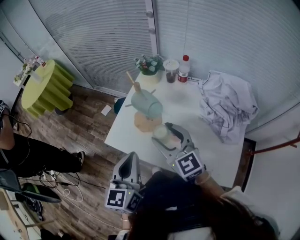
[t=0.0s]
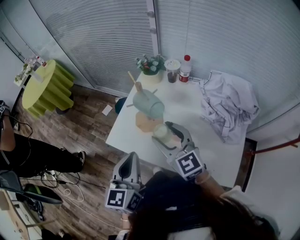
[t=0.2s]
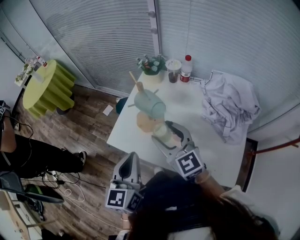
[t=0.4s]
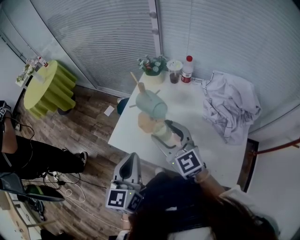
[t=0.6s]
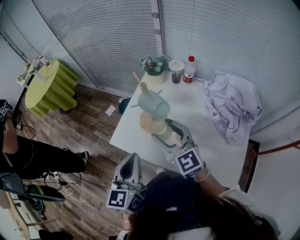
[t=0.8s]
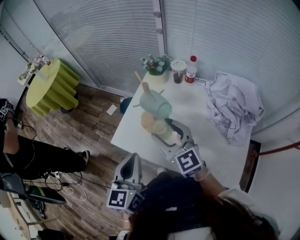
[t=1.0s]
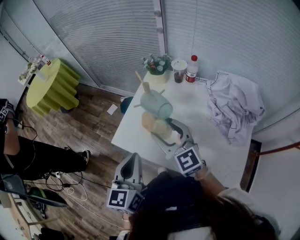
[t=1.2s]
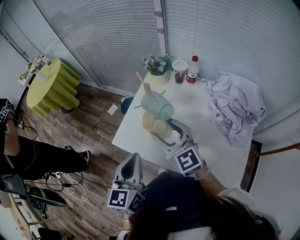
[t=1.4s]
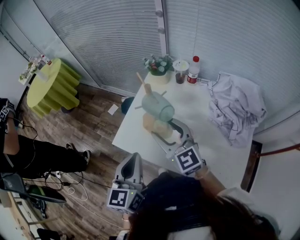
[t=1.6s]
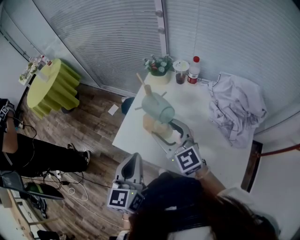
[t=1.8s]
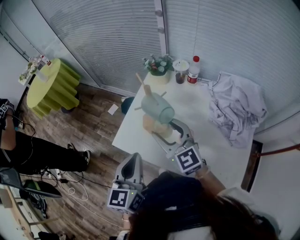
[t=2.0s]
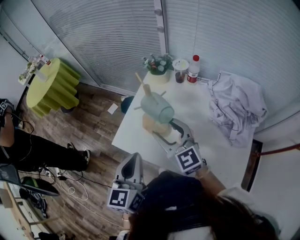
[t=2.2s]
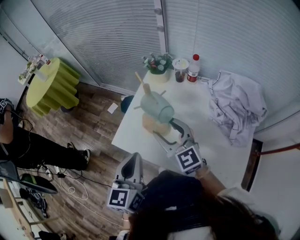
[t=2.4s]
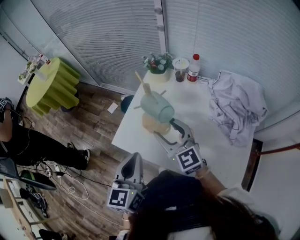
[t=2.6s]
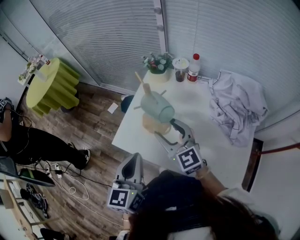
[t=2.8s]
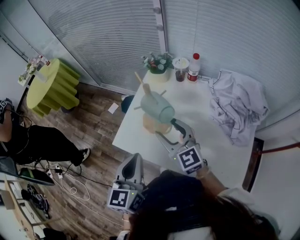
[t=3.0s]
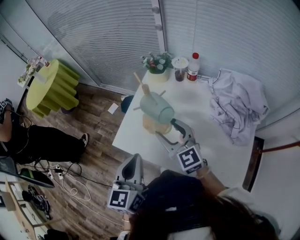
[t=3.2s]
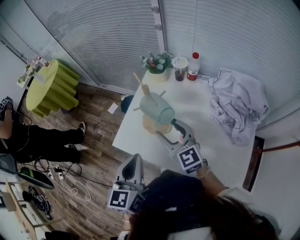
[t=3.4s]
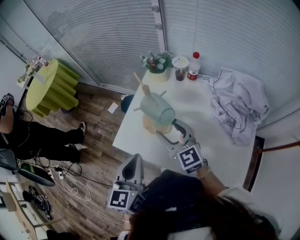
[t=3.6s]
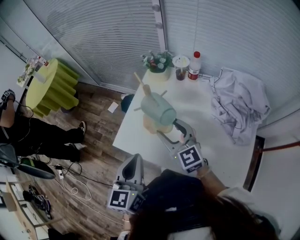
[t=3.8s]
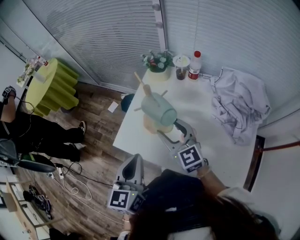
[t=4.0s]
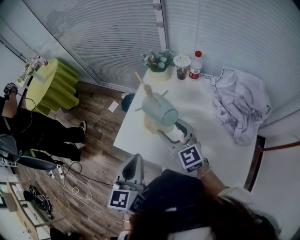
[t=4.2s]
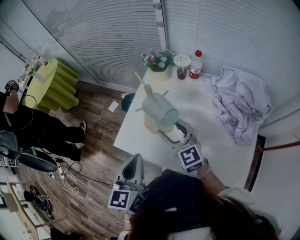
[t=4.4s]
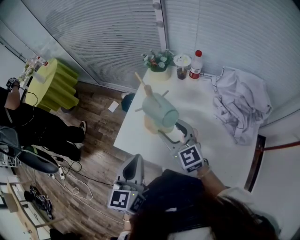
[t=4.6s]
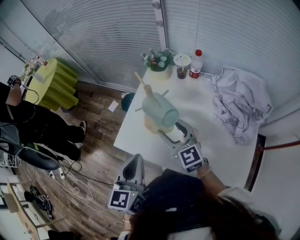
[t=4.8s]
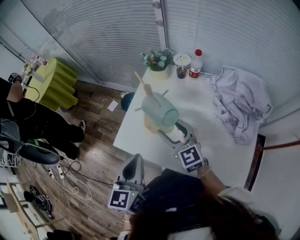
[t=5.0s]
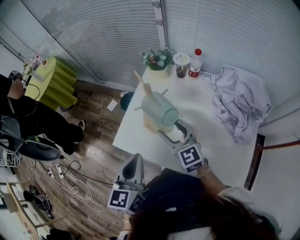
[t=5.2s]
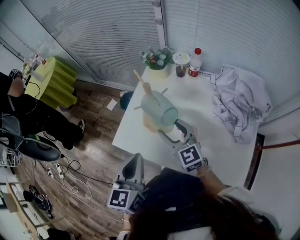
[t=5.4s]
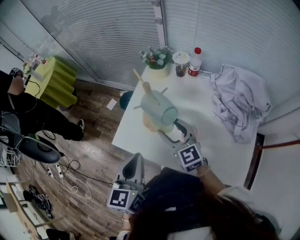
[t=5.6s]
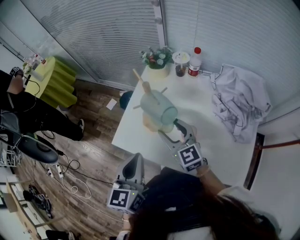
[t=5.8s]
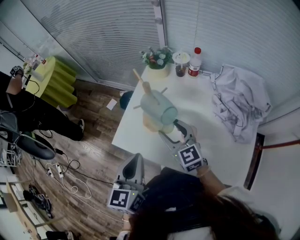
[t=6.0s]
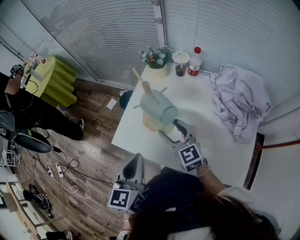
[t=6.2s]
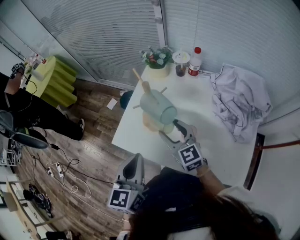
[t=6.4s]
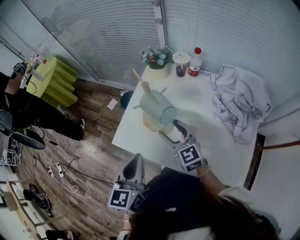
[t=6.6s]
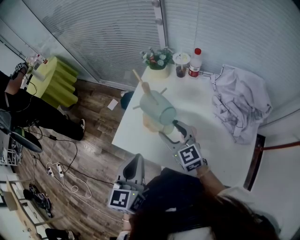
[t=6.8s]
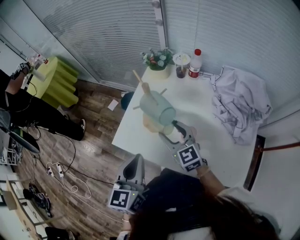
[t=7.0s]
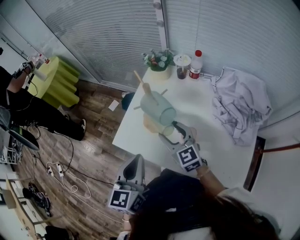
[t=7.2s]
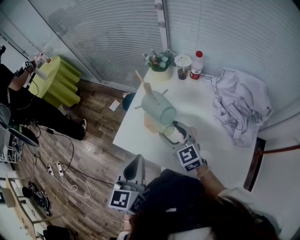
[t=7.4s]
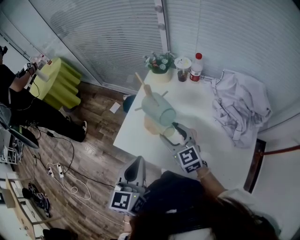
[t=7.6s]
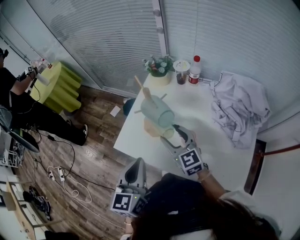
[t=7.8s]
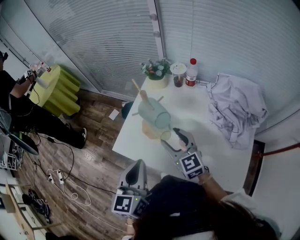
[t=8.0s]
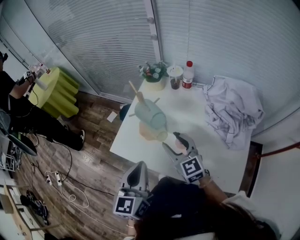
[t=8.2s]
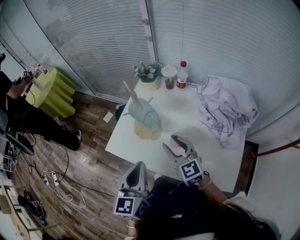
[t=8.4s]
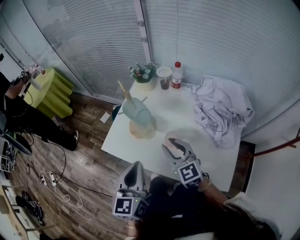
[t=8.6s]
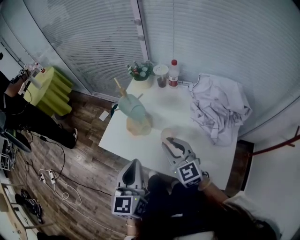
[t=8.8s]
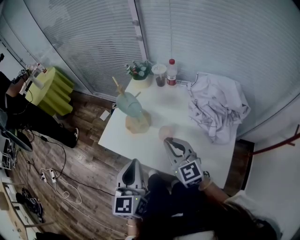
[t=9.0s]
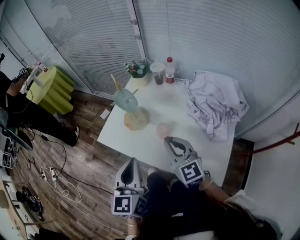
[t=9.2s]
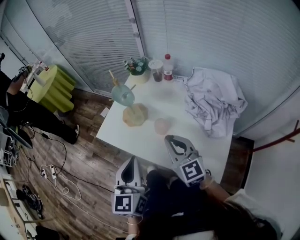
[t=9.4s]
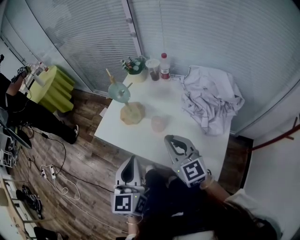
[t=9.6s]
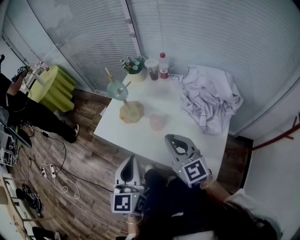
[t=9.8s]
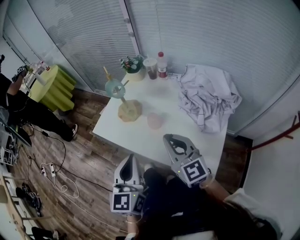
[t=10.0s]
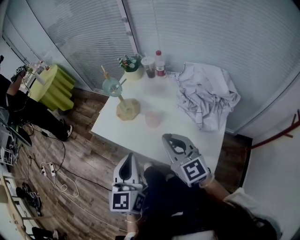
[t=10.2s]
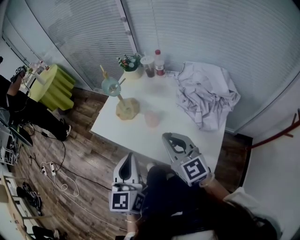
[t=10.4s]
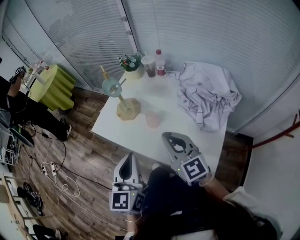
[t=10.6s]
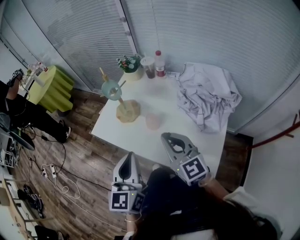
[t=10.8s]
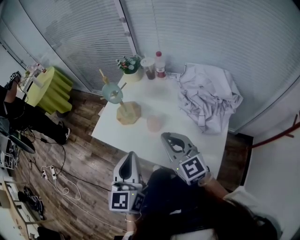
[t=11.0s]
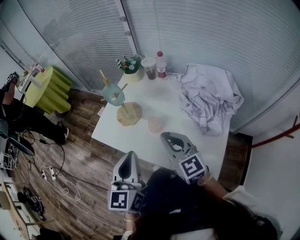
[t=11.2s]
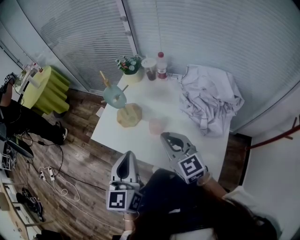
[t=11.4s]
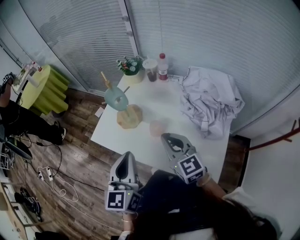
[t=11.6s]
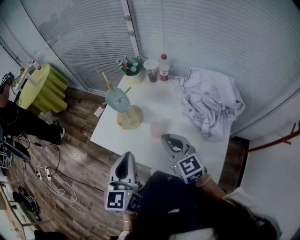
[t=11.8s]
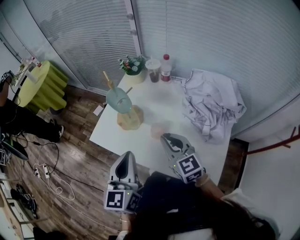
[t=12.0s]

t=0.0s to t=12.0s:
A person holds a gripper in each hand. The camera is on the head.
t=0.0s to t=1.6s: The right gripper changes place by about 5 cm.
t=1.6s to t=3.0s: There are only small adjustments of the grippers.
t=3.0s to t=6.0s: The grippers make only small movements.
t=6.0s to t=7.6s: The two grippers keep their place.
t=7.6s to t=9.0s: The right gripper goes some 15 cm backward, to the right and upward, and closes up; the left gripper is displaced to the right and backward by approximately 10 cm.
t=9.0s to t=10.4s: Both grippers move backward and to the right, about 10 cm.
t=10.4s to t=12.0s: Both grippers move forward, roughly 10 cm.

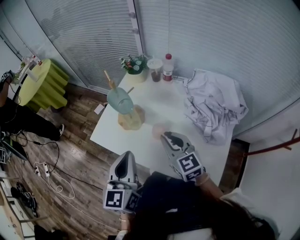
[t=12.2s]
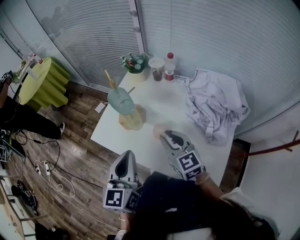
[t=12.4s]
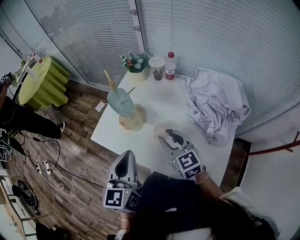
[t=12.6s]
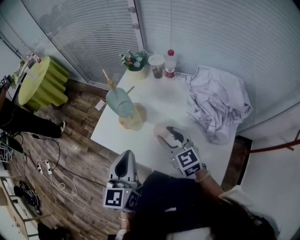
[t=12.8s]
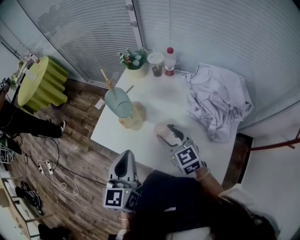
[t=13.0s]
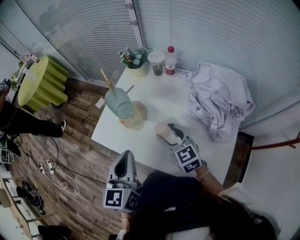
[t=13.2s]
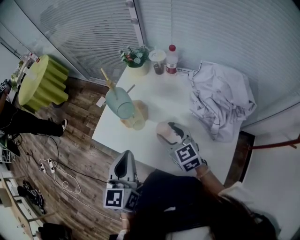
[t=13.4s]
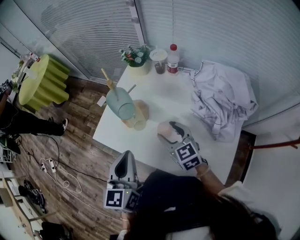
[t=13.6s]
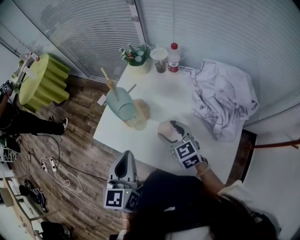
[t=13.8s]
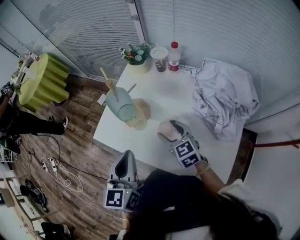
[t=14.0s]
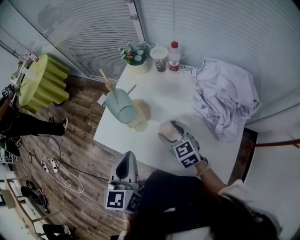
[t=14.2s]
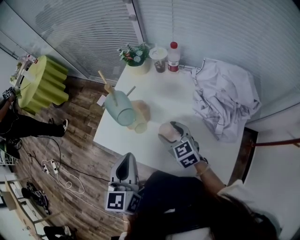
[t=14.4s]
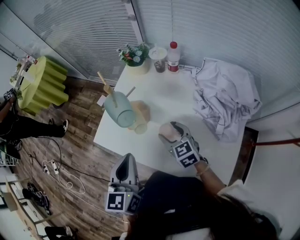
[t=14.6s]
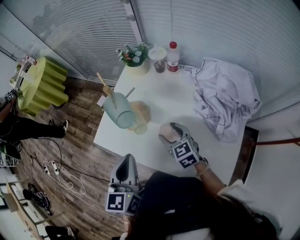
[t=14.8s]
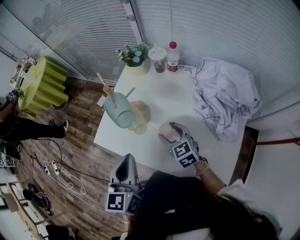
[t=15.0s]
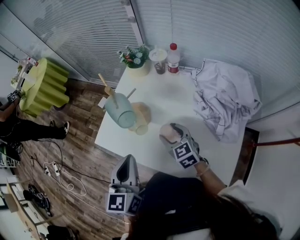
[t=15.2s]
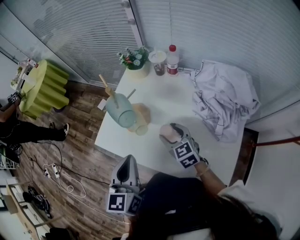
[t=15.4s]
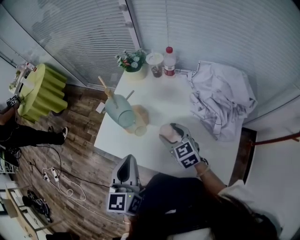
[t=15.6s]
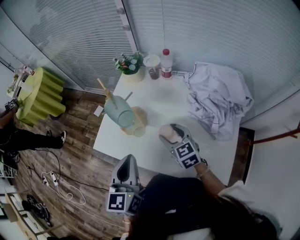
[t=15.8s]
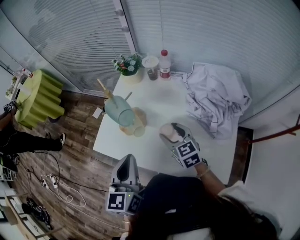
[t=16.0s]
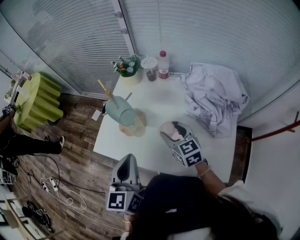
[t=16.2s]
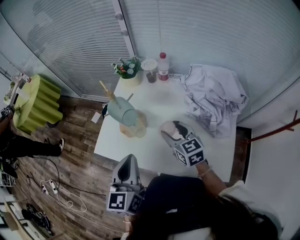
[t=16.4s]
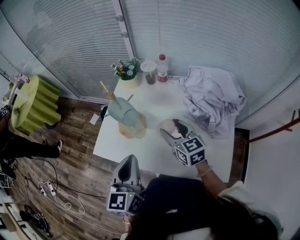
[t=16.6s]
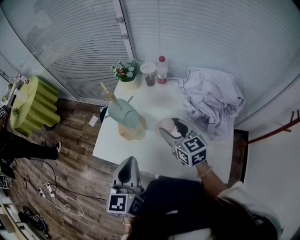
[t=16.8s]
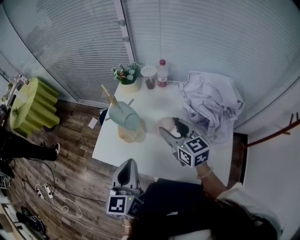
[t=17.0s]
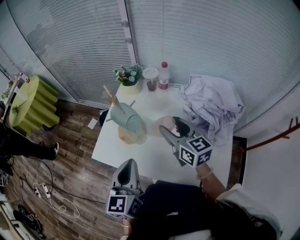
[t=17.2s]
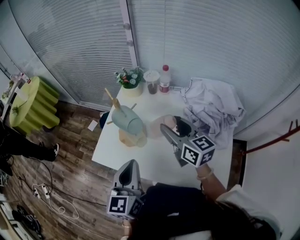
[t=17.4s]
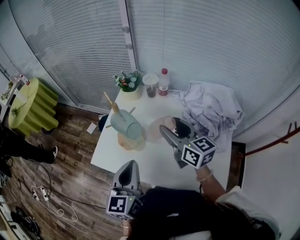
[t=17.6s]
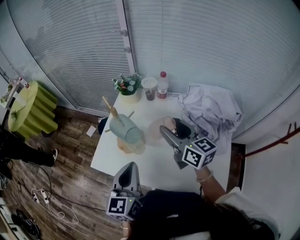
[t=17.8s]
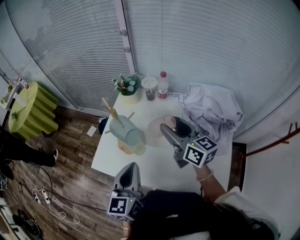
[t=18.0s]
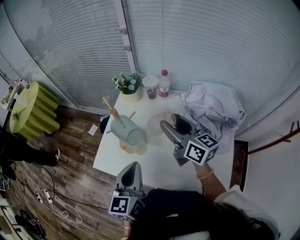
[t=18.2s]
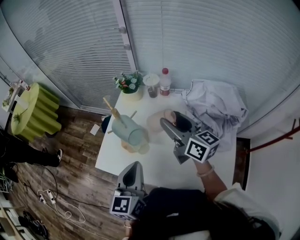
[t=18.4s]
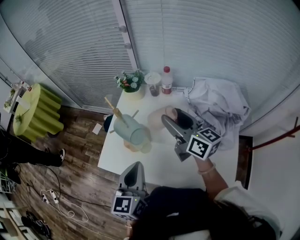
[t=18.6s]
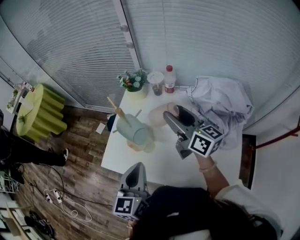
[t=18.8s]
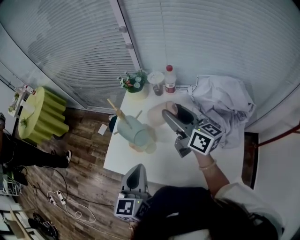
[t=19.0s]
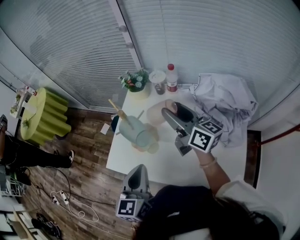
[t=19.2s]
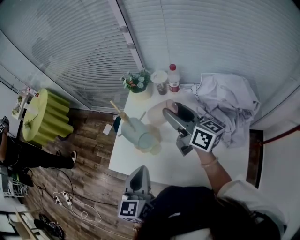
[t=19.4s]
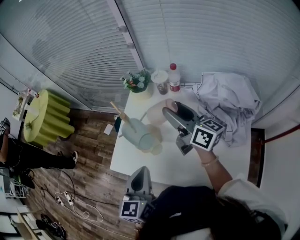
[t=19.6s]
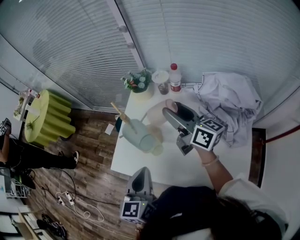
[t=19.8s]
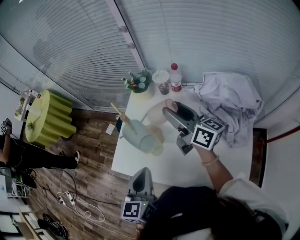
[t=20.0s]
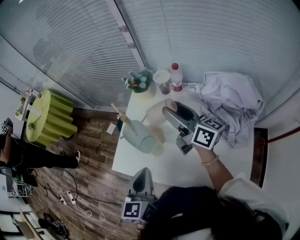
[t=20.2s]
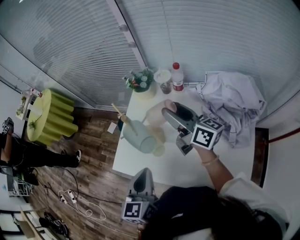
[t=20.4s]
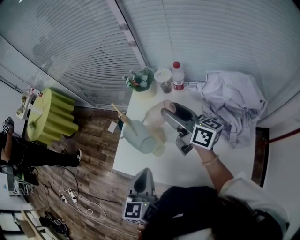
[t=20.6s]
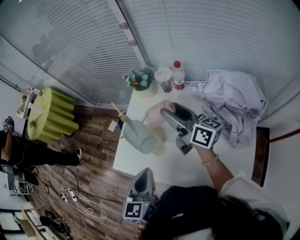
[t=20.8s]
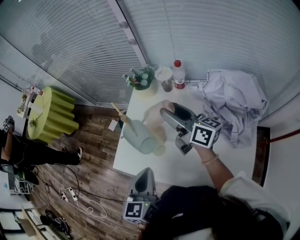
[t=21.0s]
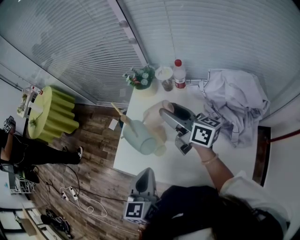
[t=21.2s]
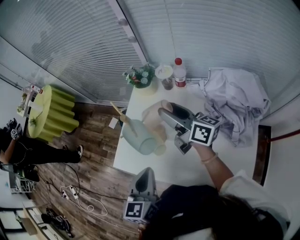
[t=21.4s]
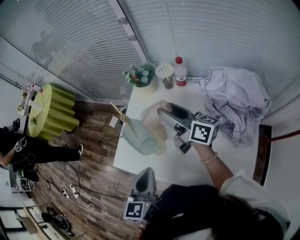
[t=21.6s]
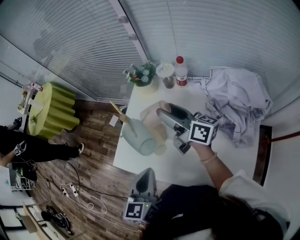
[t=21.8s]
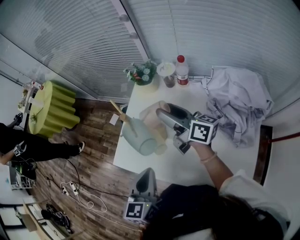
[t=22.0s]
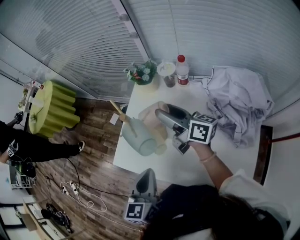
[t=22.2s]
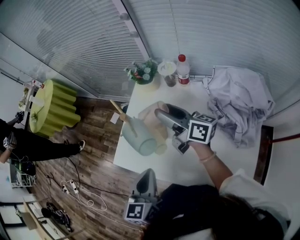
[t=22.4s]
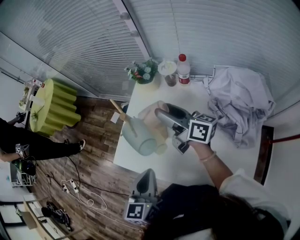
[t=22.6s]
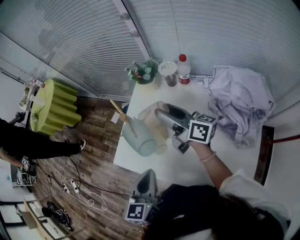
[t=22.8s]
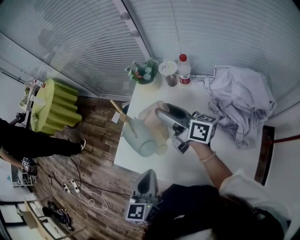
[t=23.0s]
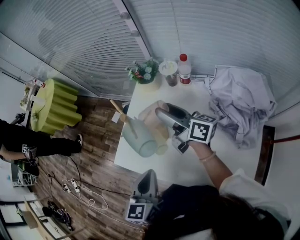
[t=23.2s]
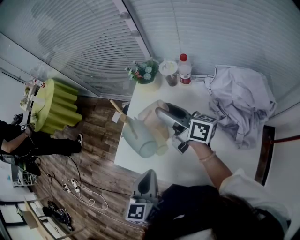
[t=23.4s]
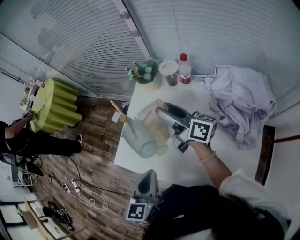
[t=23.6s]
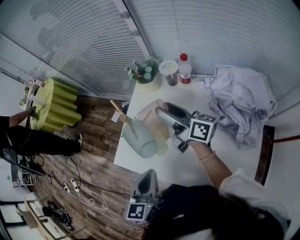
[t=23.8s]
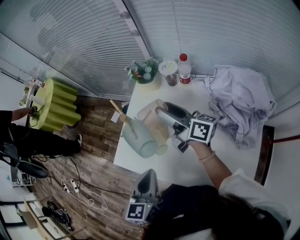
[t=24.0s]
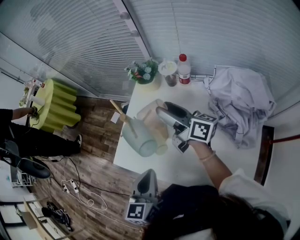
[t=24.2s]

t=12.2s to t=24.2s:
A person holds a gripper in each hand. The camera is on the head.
t=12.2s to t=13.8s: The right gripper shifts about 5 cm downward, and opens its fingers.
t=13.8s to t=15.2s: The grippers stay close to where they were, moving slightly.
t=15.2s to t=16.6s: The right gripper shifts about 10 cm upward.
t=16.6s to t=18.2s: The right gripper heads upward and forward, covering some 10 cm, and turns by approximately 30 degrees.
t=18.2s to t=19.8s: The right gripper moves forward, approximately 5 cm.
t=19.8s to t=21.2s: There are only small adjustments of the grippers.
t=21.2s to t=22.6s: The grippers make only small movements.
t=22.6s to t=24.2s: The two grippers keep their place.
